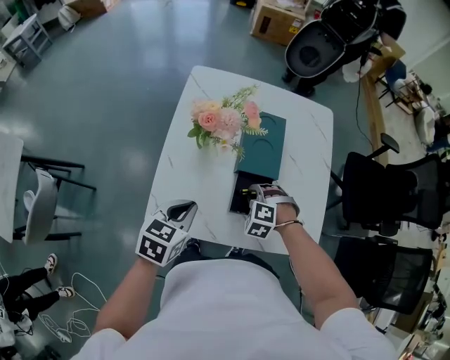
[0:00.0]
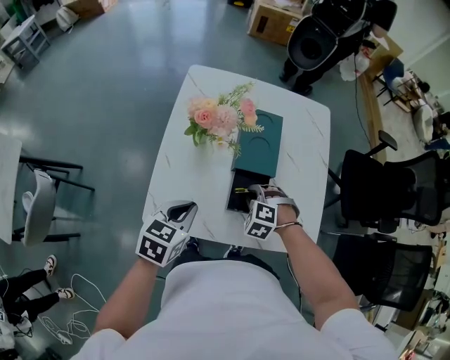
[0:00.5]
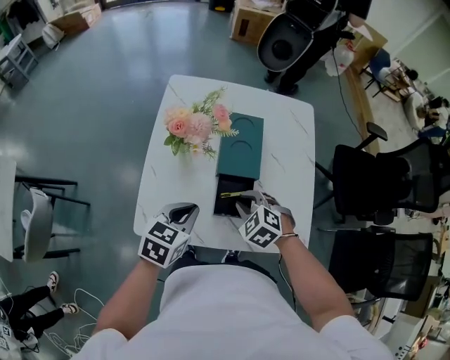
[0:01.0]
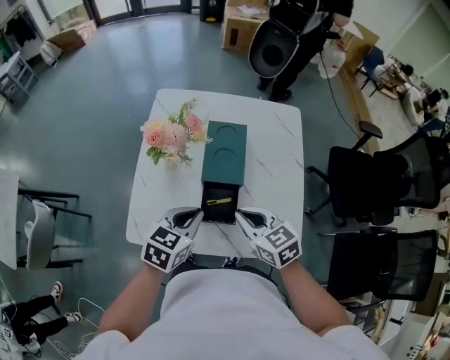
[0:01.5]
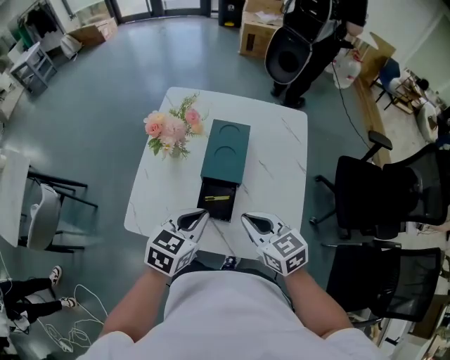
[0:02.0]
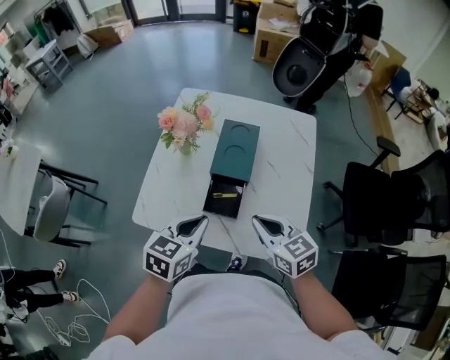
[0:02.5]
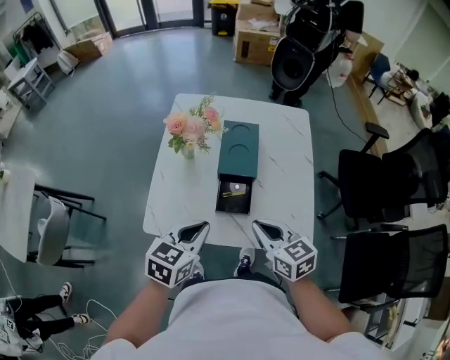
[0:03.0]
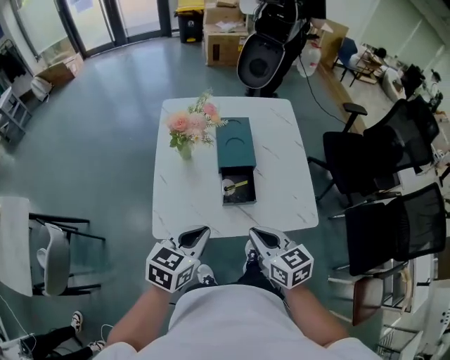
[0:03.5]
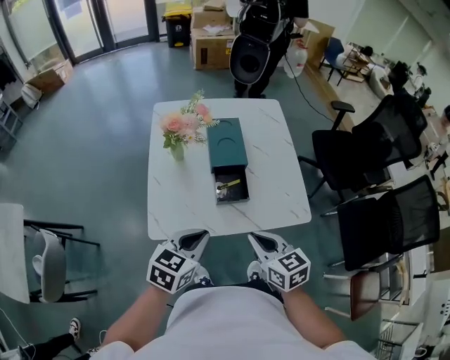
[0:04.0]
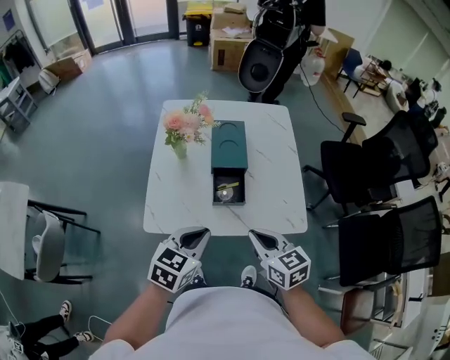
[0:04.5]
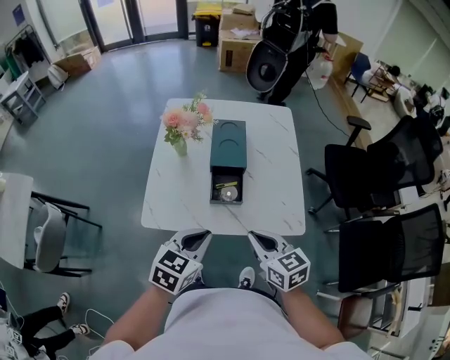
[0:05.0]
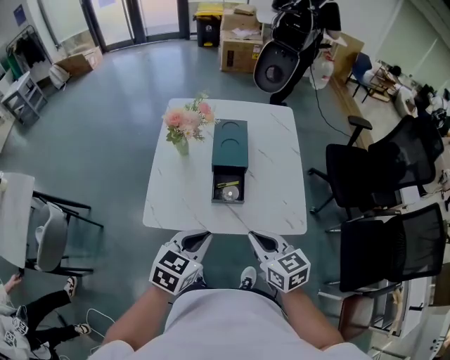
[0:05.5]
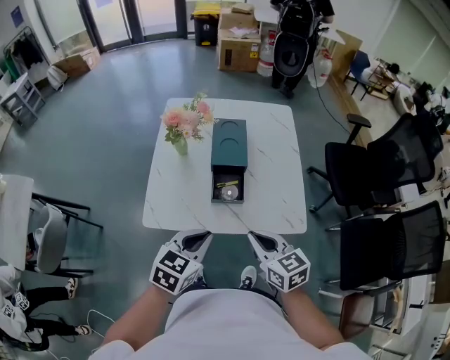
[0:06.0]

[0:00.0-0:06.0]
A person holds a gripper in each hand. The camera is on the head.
0:00.0 to 0:02.0: The right gripper is displaced upward and to the right by some 20 cm, and angles its fingers upward, by approximately 40 degrees; the left gripper shifts about 15 cm to the right.
0:02.0 to 0:04.0: Both grippers move backward and to the left, about 20 cm. The right gripper changes its angle by approximately 20 degrees.
0:04.0 to 0:06.0: The grippers both shift to the right by roughly 5 cm.

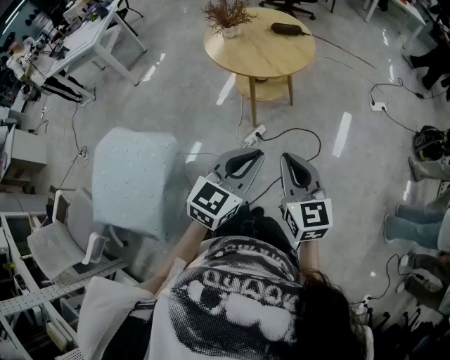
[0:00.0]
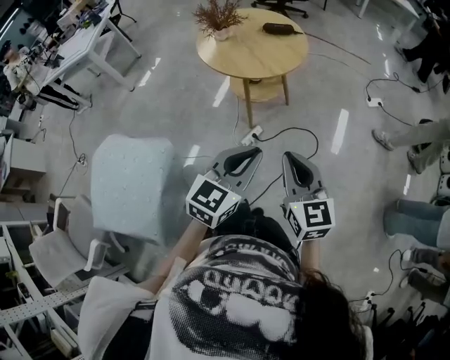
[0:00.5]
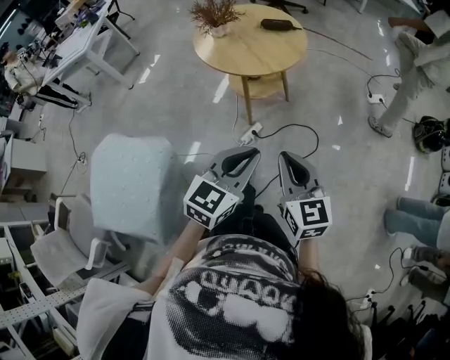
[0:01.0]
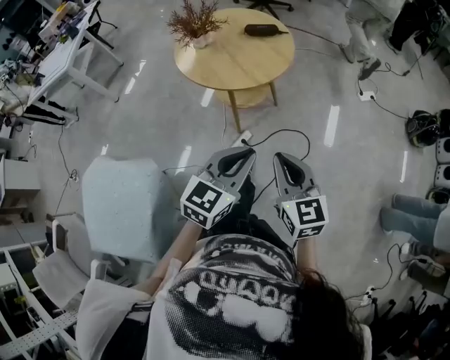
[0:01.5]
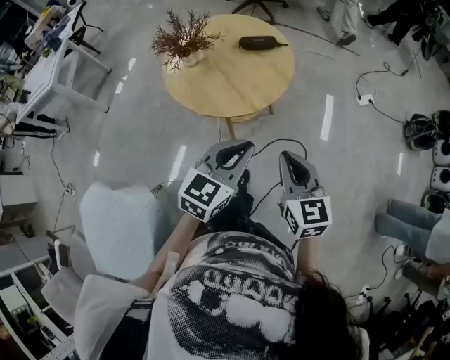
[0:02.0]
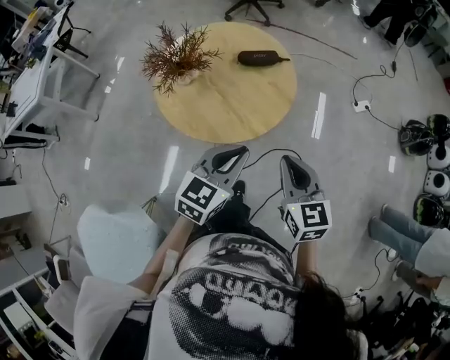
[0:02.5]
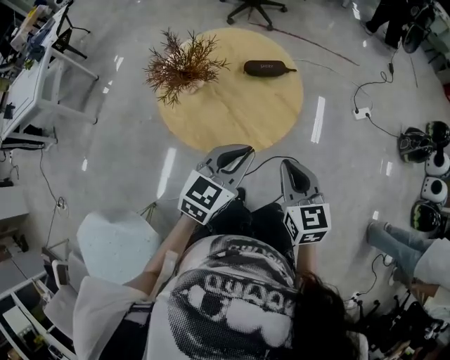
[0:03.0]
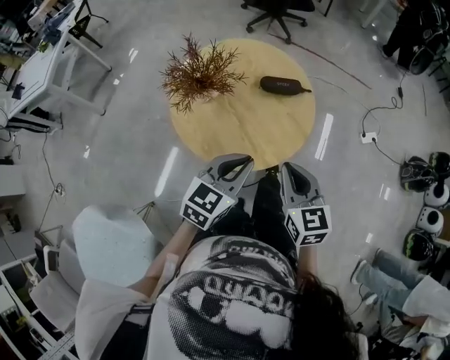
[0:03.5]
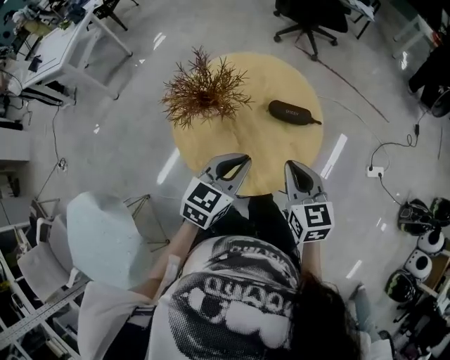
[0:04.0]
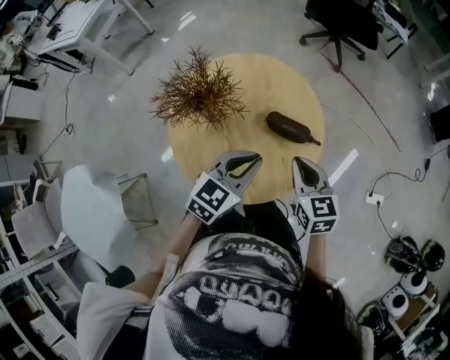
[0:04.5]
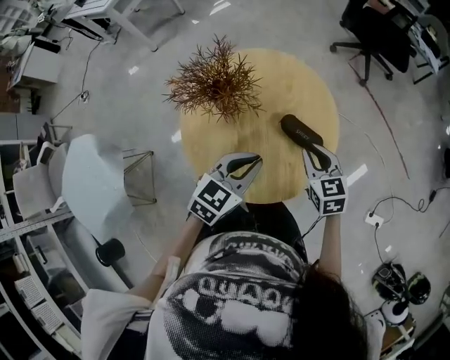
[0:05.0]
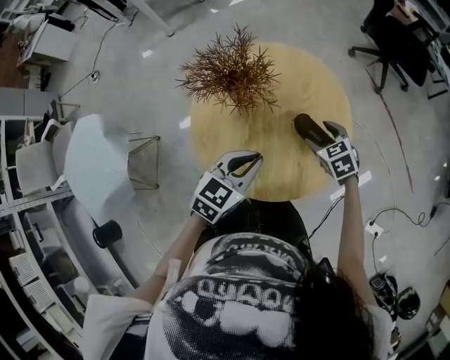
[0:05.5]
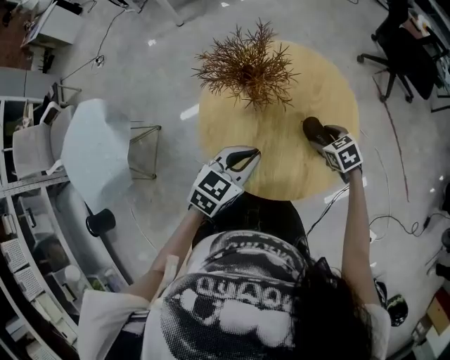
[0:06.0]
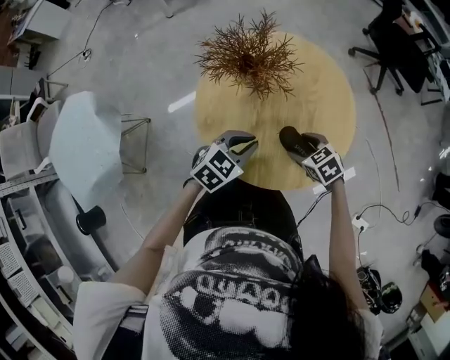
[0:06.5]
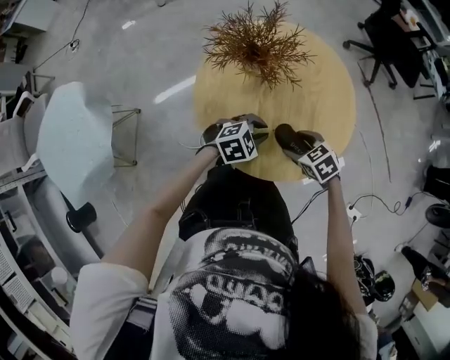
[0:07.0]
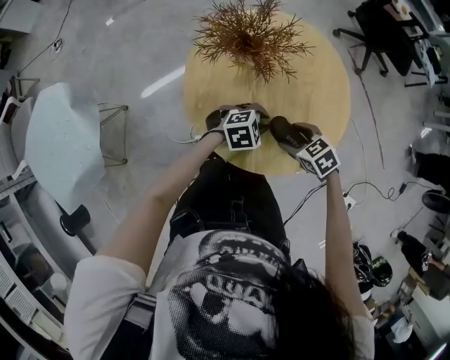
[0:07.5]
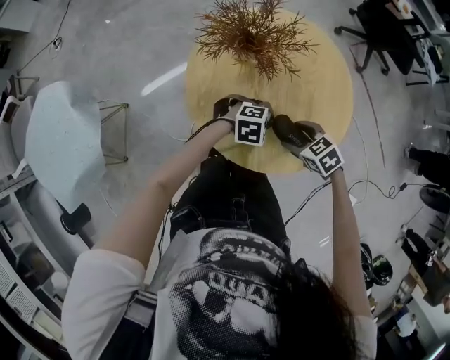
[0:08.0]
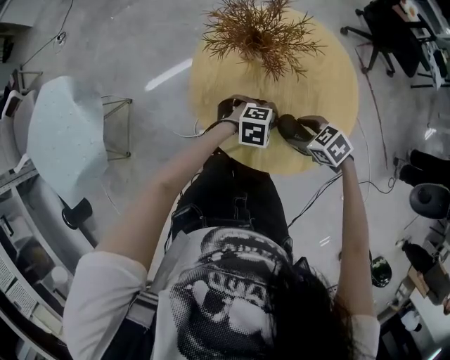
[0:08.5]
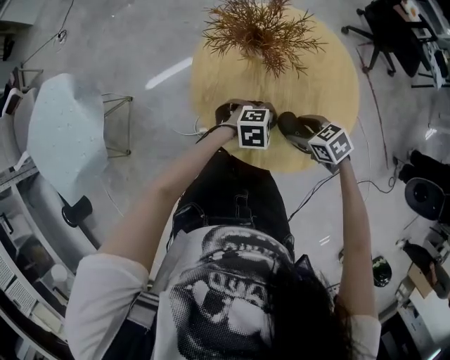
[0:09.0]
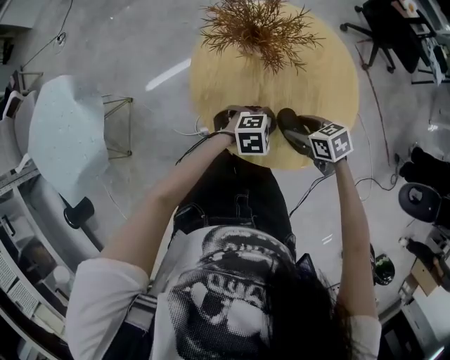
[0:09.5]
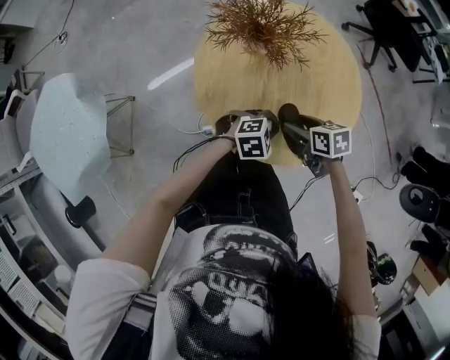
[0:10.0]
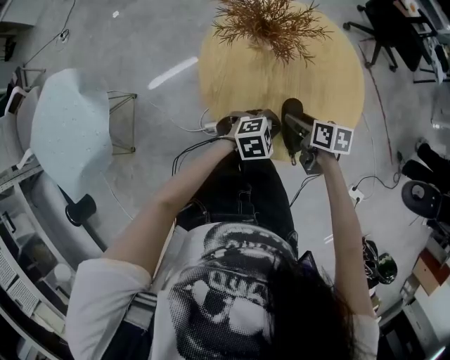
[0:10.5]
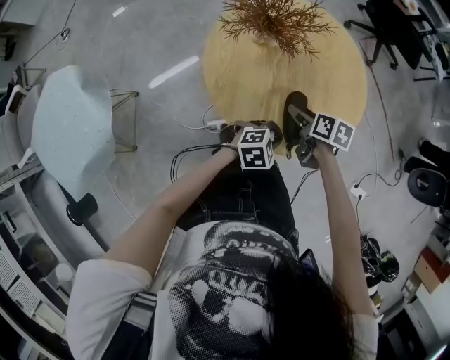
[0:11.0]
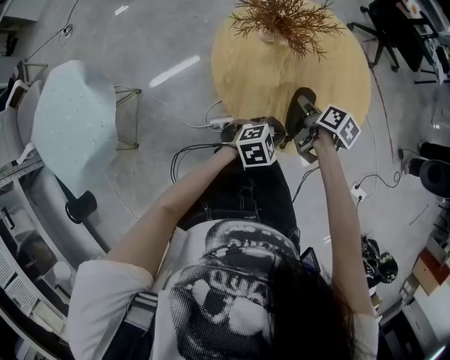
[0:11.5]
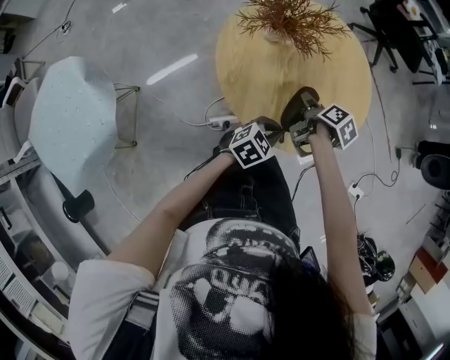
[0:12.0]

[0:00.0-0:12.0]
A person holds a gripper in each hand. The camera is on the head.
0:00.0 to 0:02.0: Both grippers move forward, some 25 cm.
0:02.0 to 0:04.0: Both grippers move forward, some 30 cm.
0:04.0 to 0:06.0: The left gripper moves downward, approximately 5 cm, and swivels approximately 30 degrees; the right gripper shifts about 20 cm downward, tips its fingers downward by approximately 30 degrees, and opens its fingers.
0:06.0 to 0:08.0: The right gripper moves about 15 cm; the left gripper goes approximately 15 cm downward, and rotates roughly 60 degrees.
0:08.0 to 0:10.0: The right gripper turns by about 30 degrees.
0:10.0 to 0:12.0: The left gripper moves roughly 5 cm, and swivels some 30 degrees; the right gripper twists some 60 degrees clockwise, seen from behind.

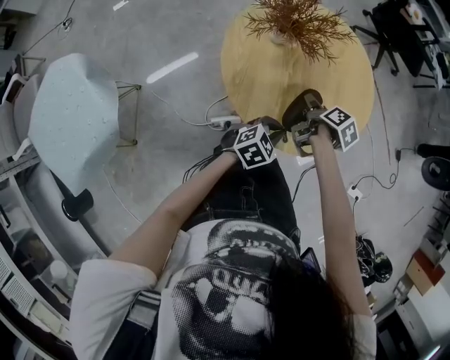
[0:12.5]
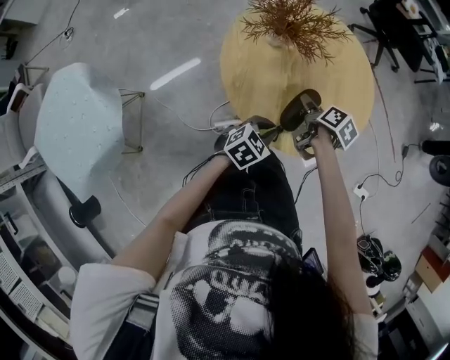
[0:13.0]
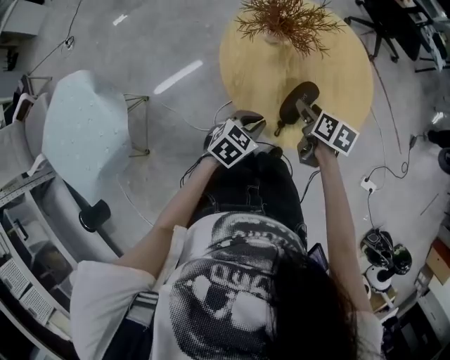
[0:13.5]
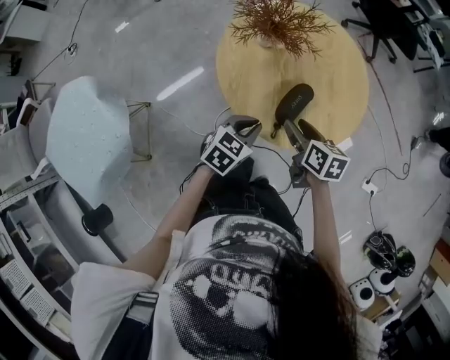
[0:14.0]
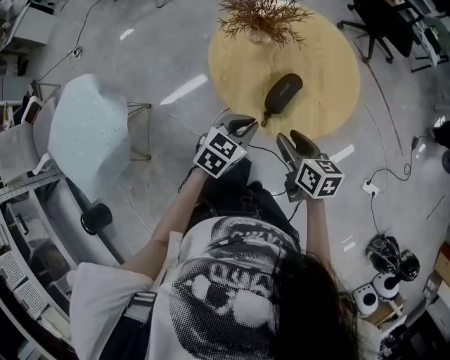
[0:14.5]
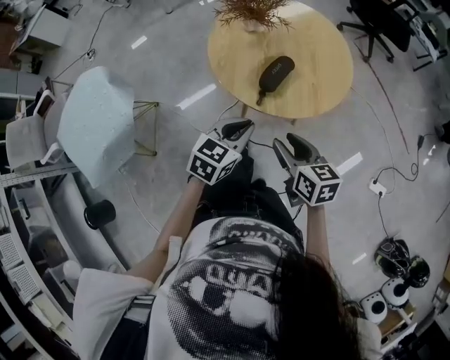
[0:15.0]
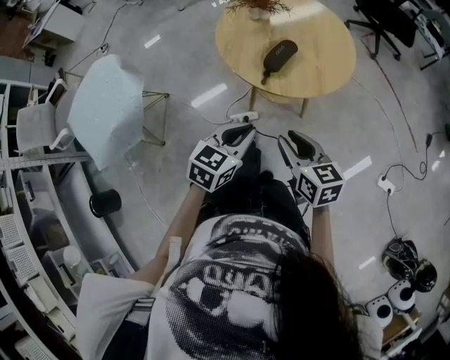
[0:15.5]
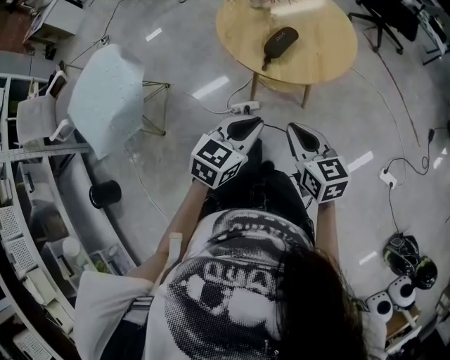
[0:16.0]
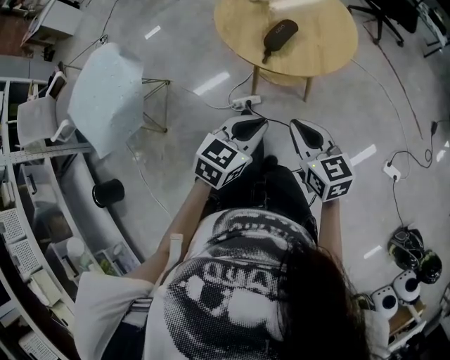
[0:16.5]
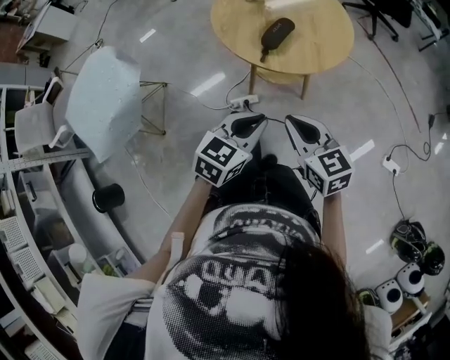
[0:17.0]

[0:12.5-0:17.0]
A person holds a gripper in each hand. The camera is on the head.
0:12.5 to 0:14.5: The right gripper heads backward and upward, covering roughly 20 cm, and rolls counterclockwise, seen from behind, by some 40 degrees. Meanwhile the left gripper is displaced upward, to the left and backward by approximately 10 cm.
0:14.5 to 0:17.0: The two grippers go approximately 20 cm backward. The right gripper rotates about 30 degrees, and closes up.

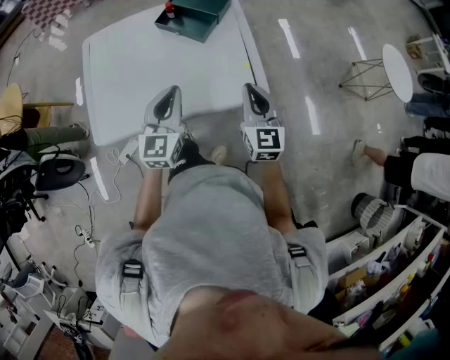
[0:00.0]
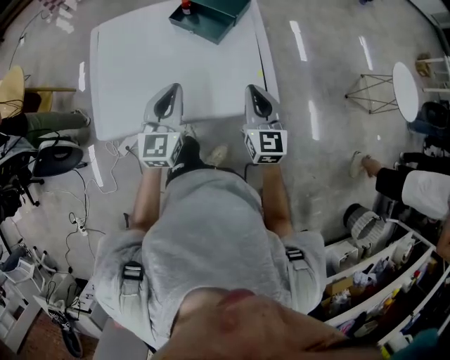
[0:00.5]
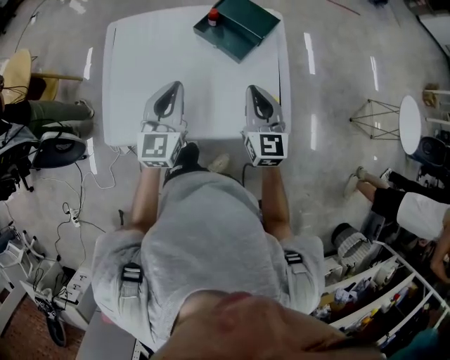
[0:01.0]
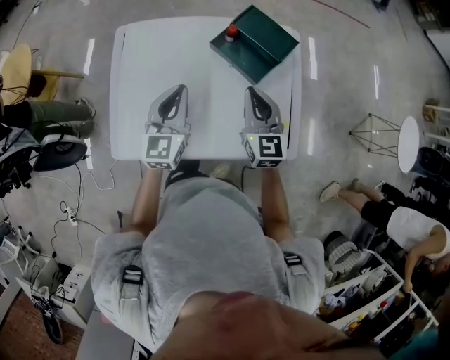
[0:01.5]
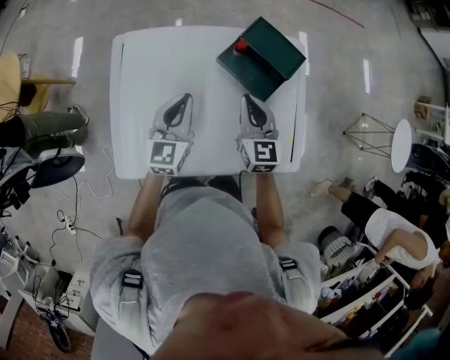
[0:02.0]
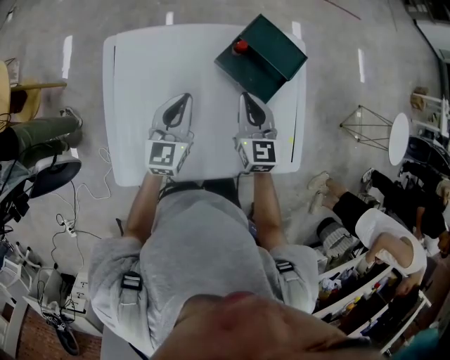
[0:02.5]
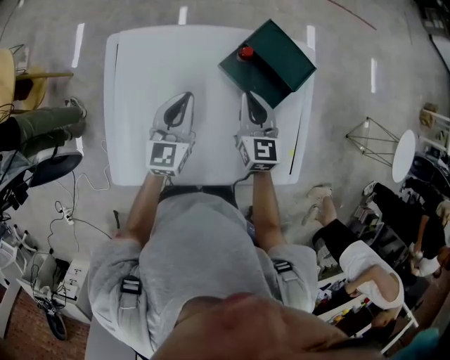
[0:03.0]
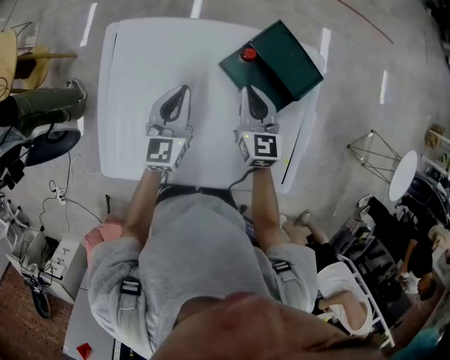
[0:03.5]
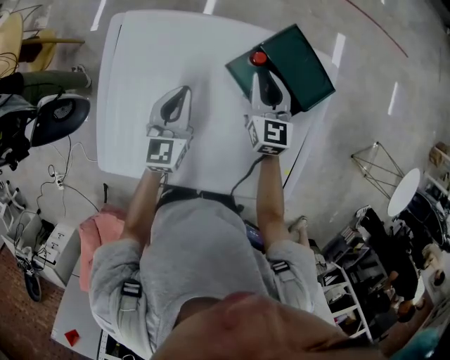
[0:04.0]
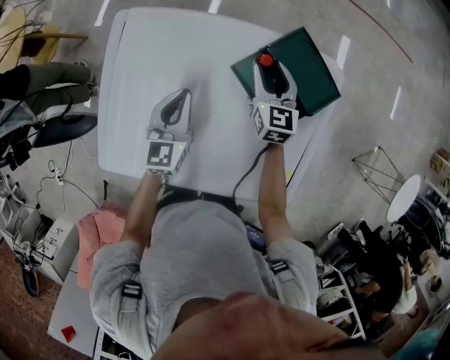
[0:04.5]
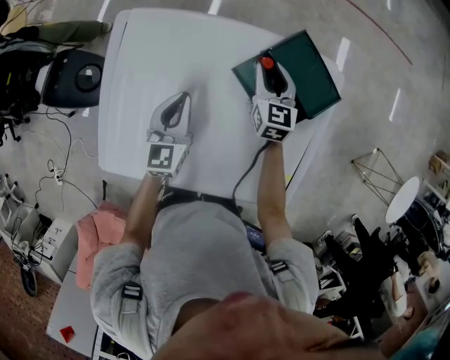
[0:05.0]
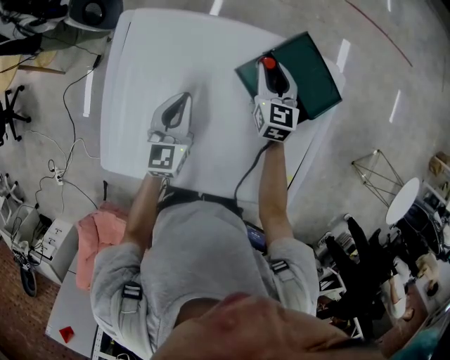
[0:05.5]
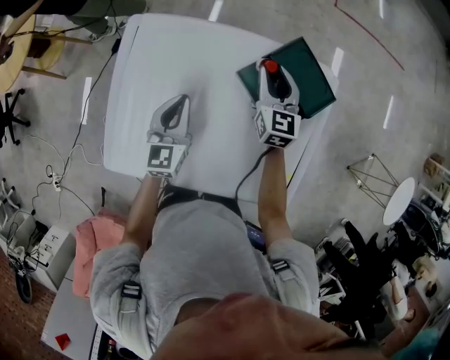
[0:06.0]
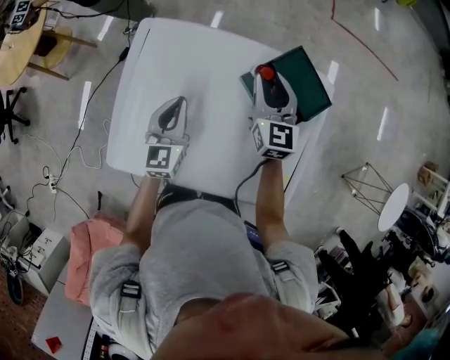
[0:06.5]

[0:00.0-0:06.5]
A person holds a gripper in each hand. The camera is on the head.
0:00.0 to 0:02.0: Both grippers move forward and to the left, some 35 cm.
0:02.0 to 0:04.5: The left gripper moves downward and forward, some 10 cm; the right gripper goes roughly 20 cm forward and downward, and opens.
0:04.5 to 0:06.5: The right gripper shifts some 10 cm upward and to the left. The left gripper goes approximately 5 cm to the left.
